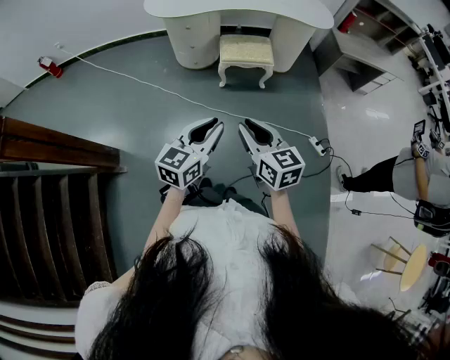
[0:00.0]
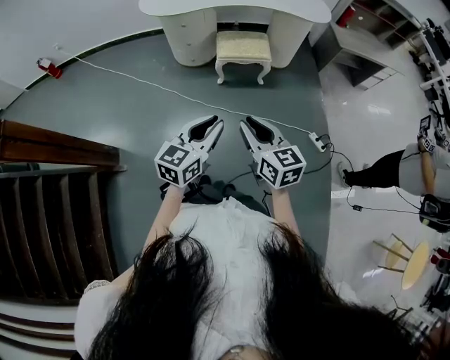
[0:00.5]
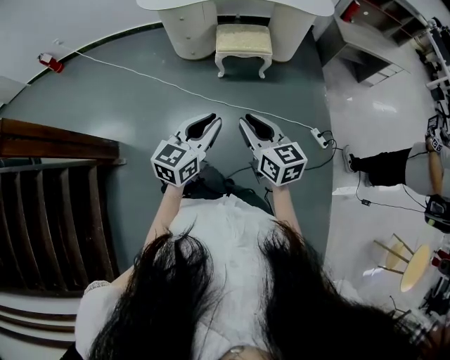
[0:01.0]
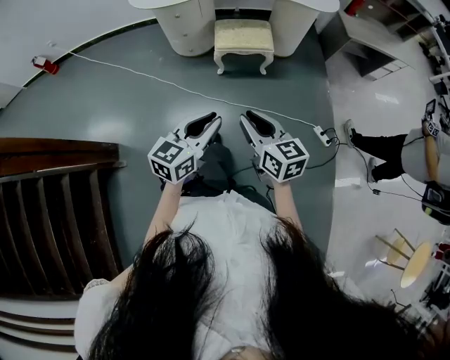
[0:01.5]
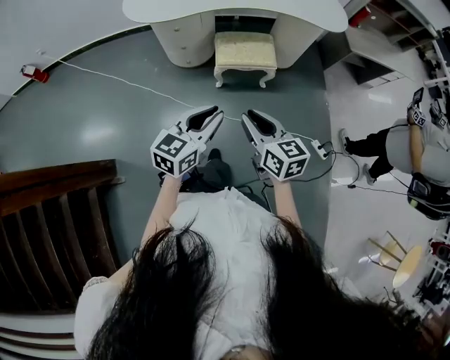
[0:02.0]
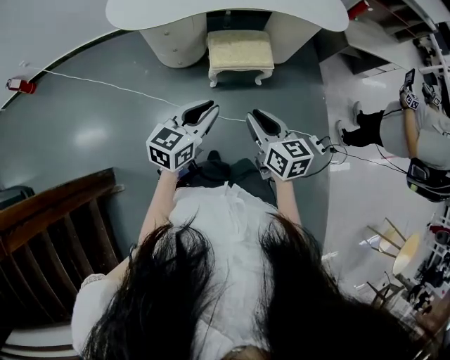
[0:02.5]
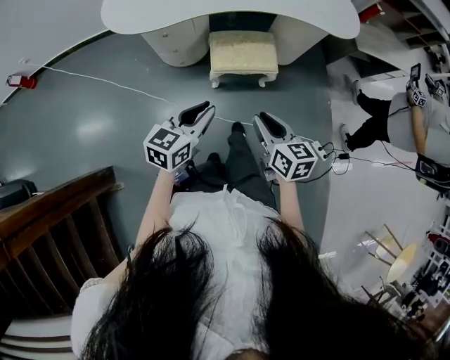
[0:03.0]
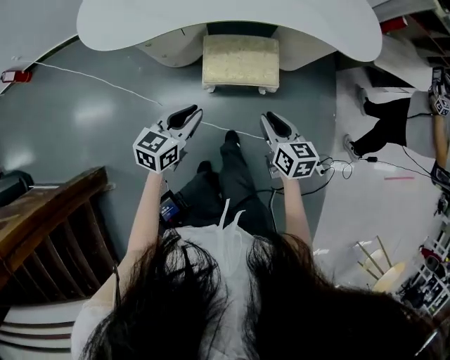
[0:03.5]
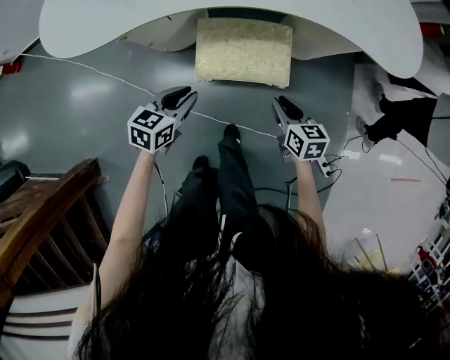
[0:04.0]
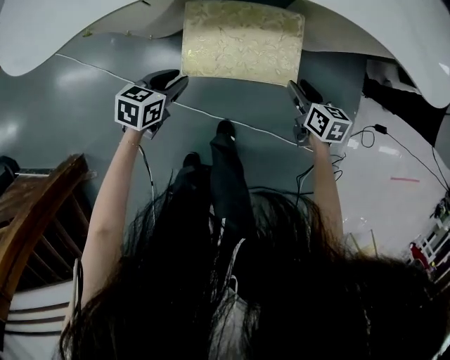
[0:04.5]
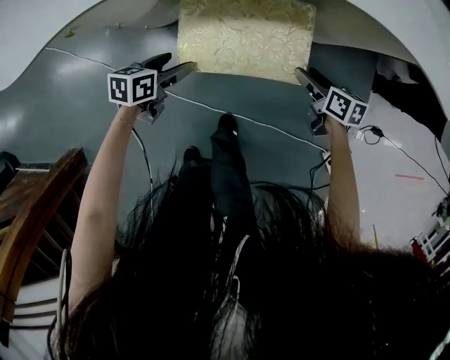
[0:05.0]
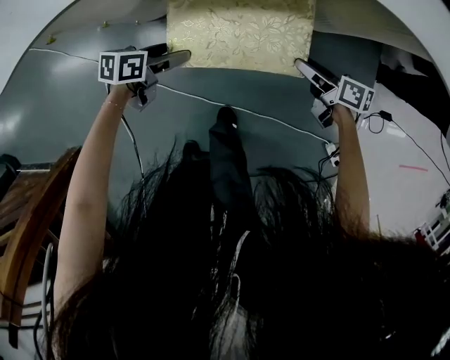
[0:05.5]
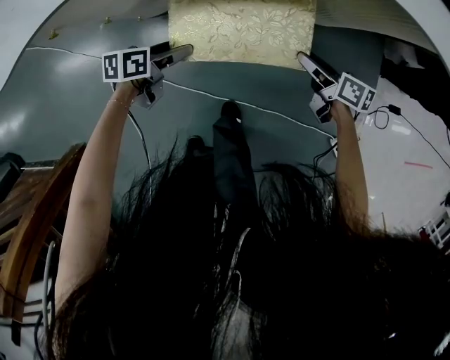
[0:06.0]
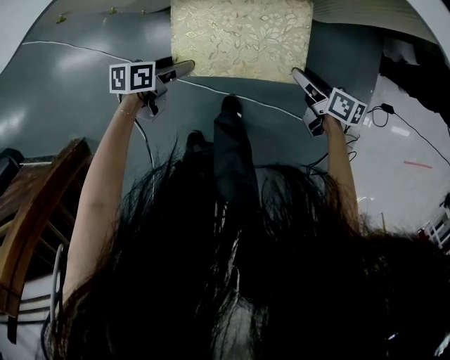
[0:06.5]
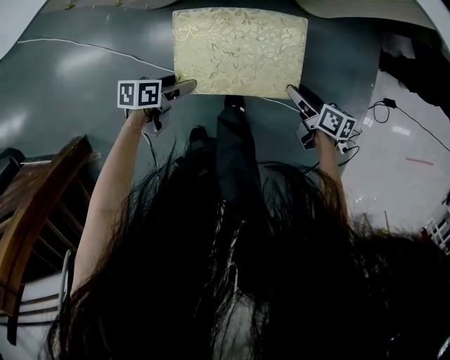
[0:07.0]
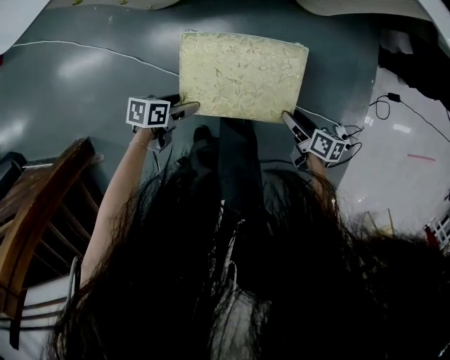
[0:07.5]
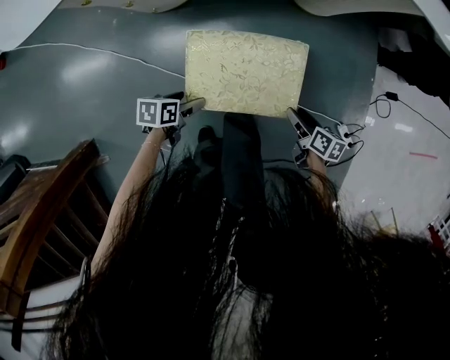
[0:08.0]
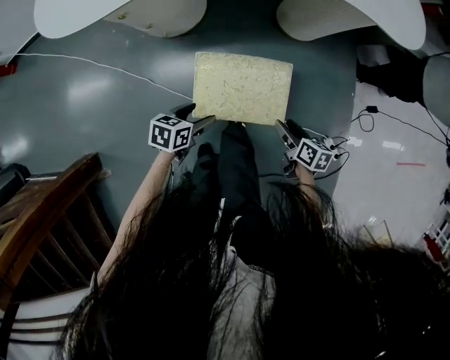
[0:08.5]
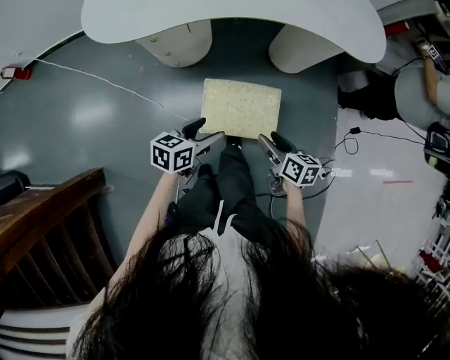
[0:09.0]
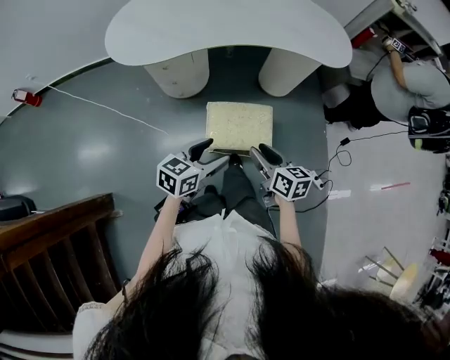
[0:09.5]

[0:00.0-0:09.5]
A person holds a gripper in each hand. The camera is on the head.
0:00.0 to 0:02.0: Both grippers travel together forward, roughly 20 cm.
0:02.0 to 0:04.0: The grippers both shift forward and downward by roughly 50 cm. The right gripper turns by some 20 degrees; the left gripper turns by some 30 degrees.
0:04.0 to 0:05.5: Both grippers move downward and forward, some 25 cm. The right gripper turns by some 40 degrees, and opens up. The left gripper swivels about 30 degrees, and opens its fingers.
0:05.5 to 0:07.5: The left gripper rotates approximately 20 degrees.
0:07.5 to 0:09.5: The two grippers go approximately 50 cm upward. The left gripper swivels some 50 degrees, while the right gripper changes its angle by about 30 degrees.

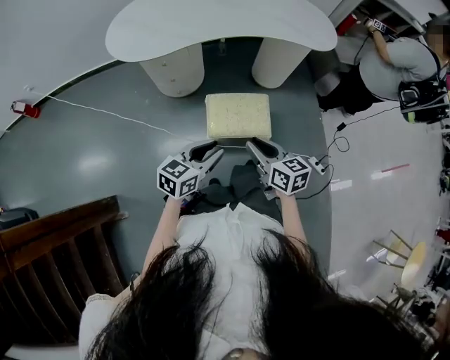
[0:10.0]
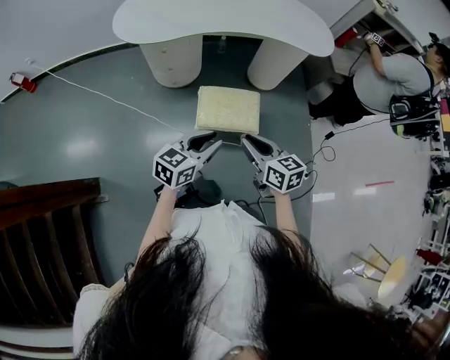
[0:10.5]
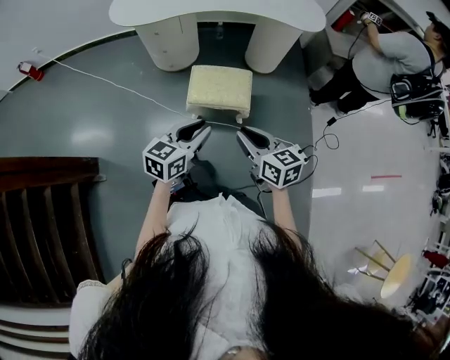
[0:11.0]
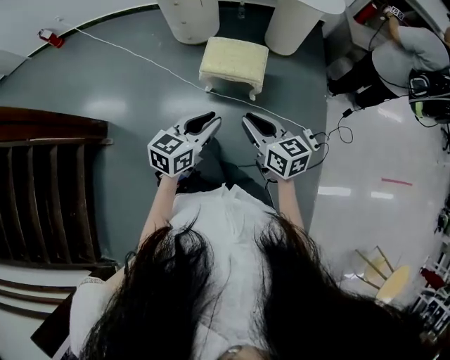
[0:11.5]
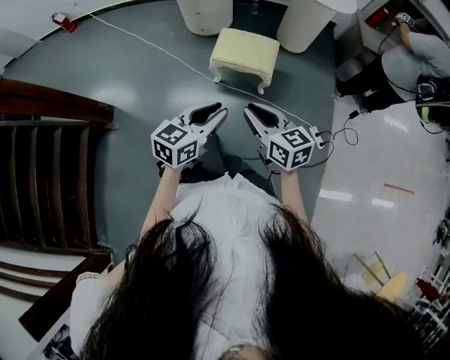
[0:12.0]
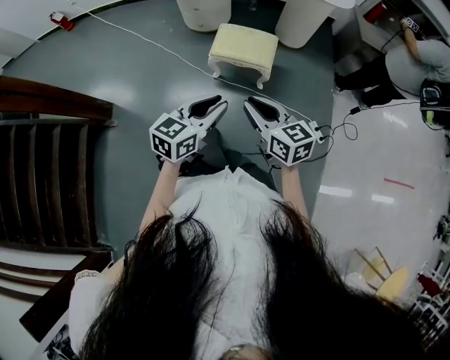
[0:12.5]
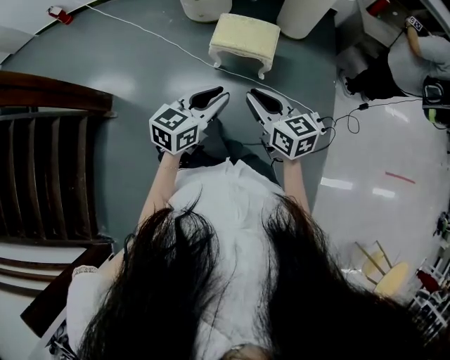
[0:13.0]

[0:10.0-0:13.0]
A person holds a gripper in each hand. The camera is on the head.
0:10.0 to 0:11.5: The grippers both shift backward and to the right by approximately 25 cm.
0:11.5 to 0:13.0: The grippers stay close to where they were, moving slightly.

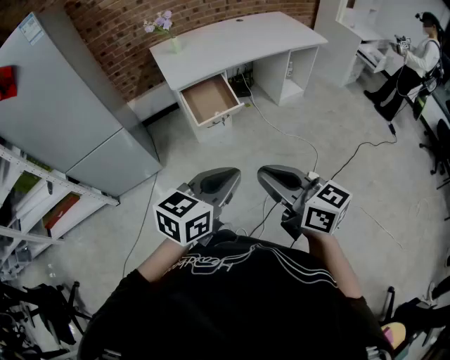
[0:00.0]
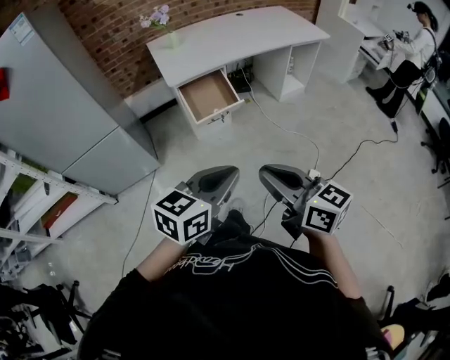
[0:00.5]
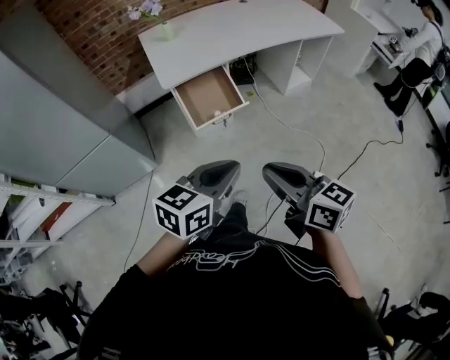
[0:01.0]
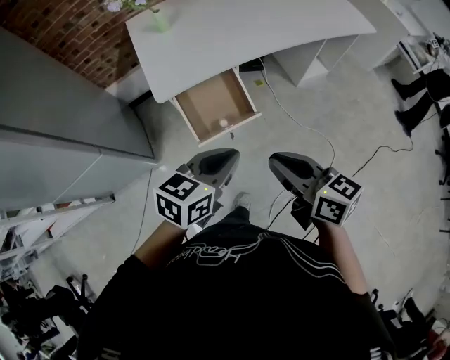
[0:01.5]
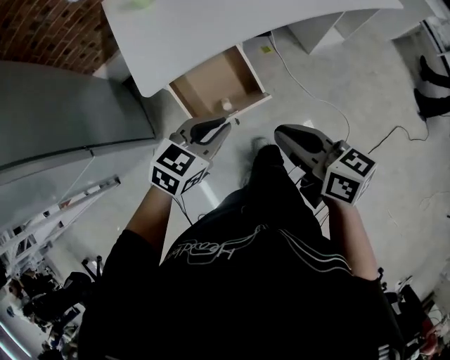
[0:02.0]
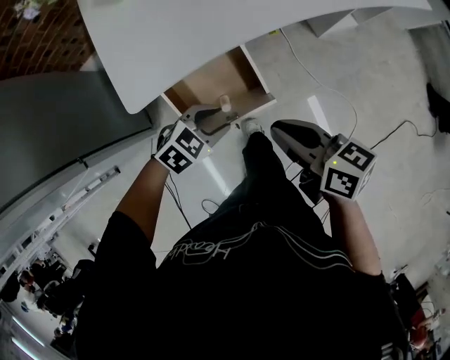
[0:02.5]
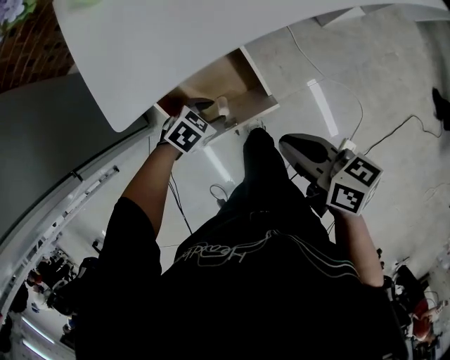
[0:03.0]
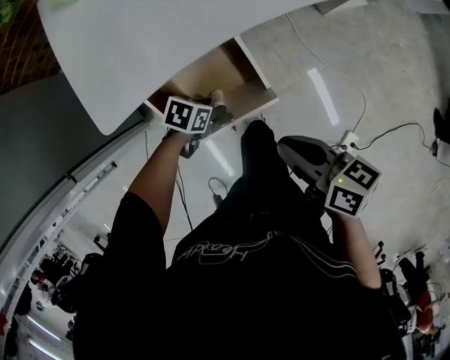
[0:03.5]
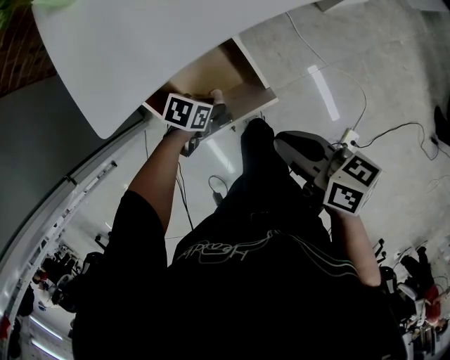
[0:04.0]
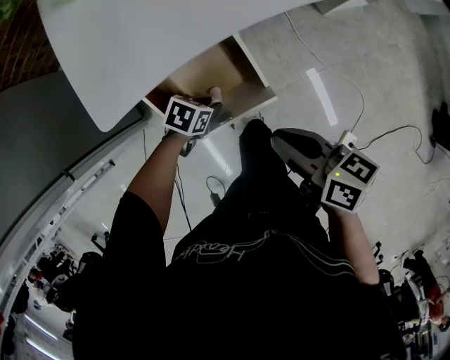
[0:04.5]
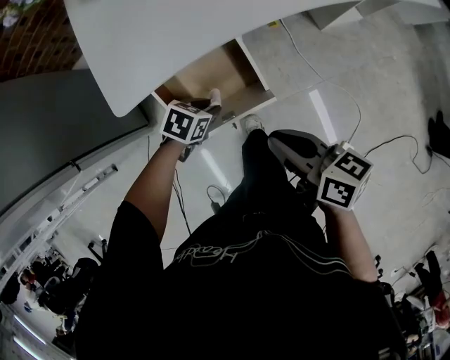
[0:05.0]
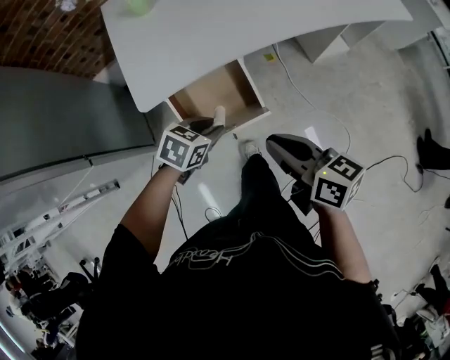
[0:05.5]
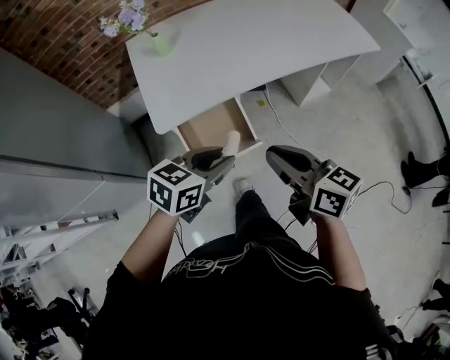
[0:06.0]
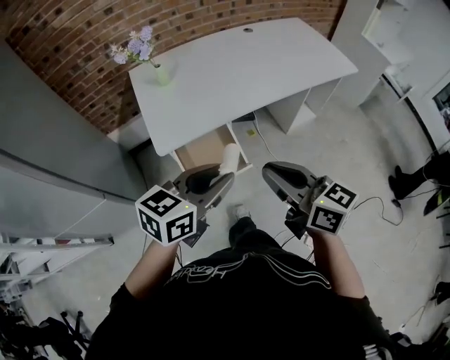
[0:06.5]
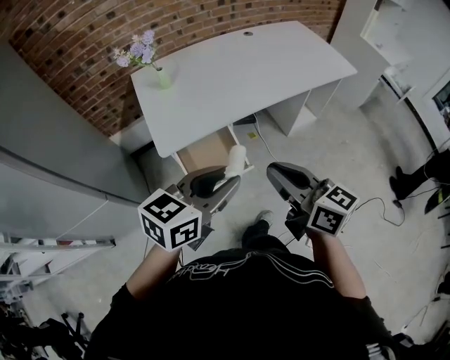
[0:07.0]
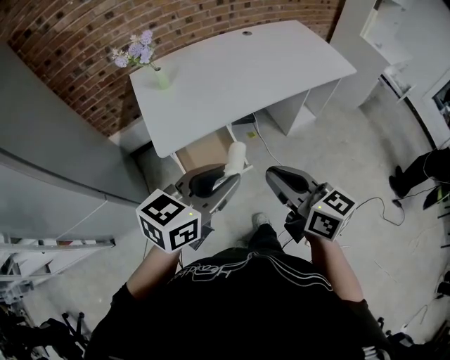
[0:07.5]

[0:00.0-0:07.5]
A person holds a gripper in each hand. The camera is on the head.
0:00.0 to 0:02.0: Both grippers travel together upward, approximately 60 cm. The right gripper turns by about 20 degrees; the left gripper swivels approximately 20 degrees.
0:02.0 to 0:04.0: The left gripper moves forward, roughly 35 cm, tilts its fingers roughly 30 degrees downward, and opens its fingers, while the right gripper heads forward and upward, covering roughly 20 cm, and changes its angle by about 20 degrees.
0:04.0 to 0:05.5: The right gripper goes approximately 15 cm backward and downward. The left gripper shifts roughly 20 cm backward, and rotates about 30 degrees.
0:05.5 to 0:07.5: The left gripper ends up roughly 40 cm from where it was, and changes its angle by roughly 40 degrees. Meanwhile the right gripper shifts by some 25 cm, and turns by some 20 degrees.

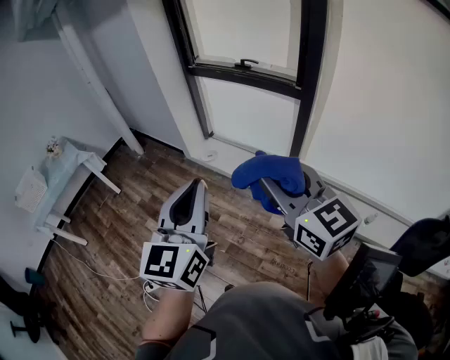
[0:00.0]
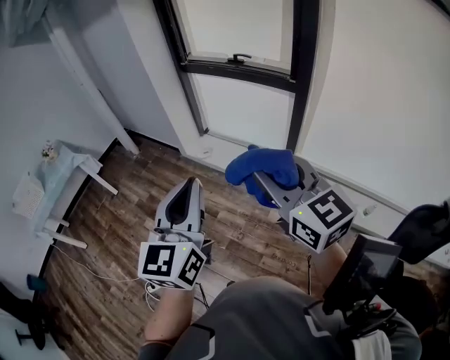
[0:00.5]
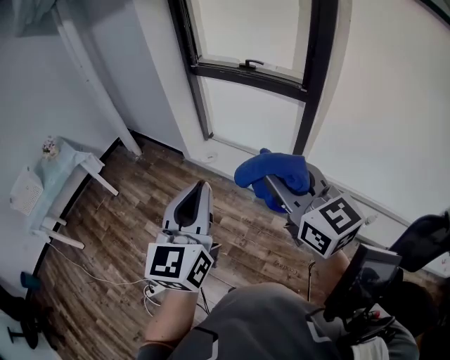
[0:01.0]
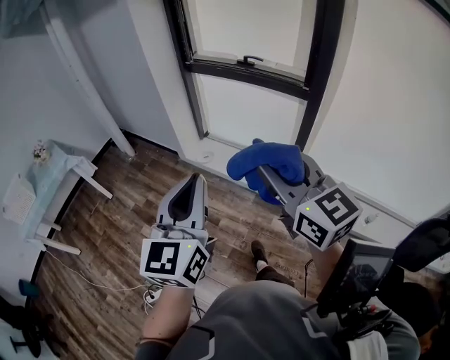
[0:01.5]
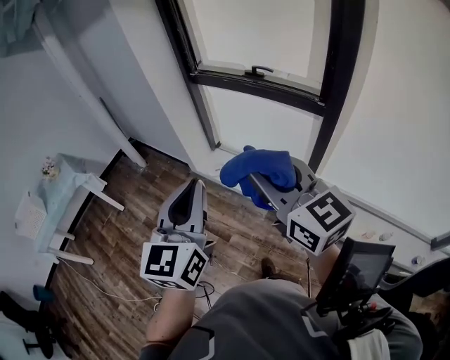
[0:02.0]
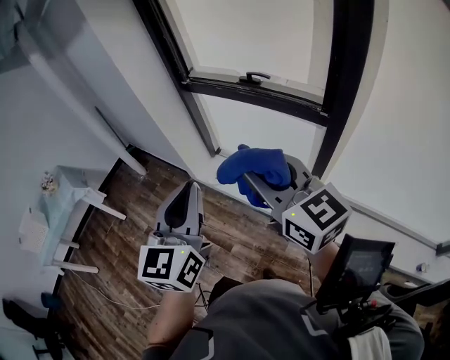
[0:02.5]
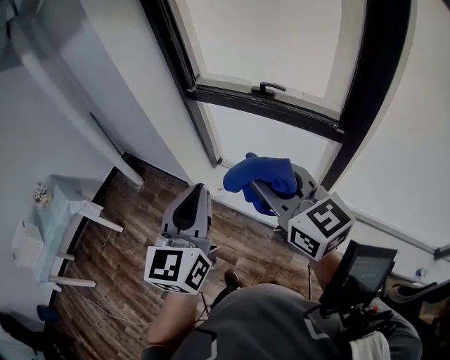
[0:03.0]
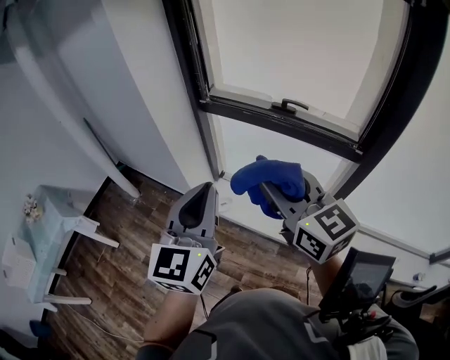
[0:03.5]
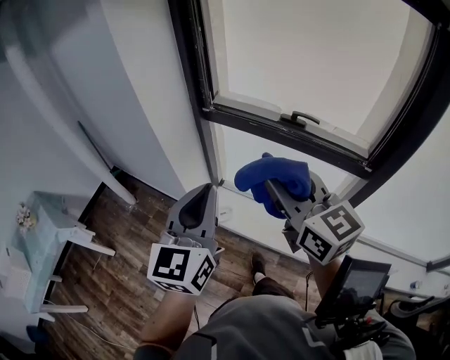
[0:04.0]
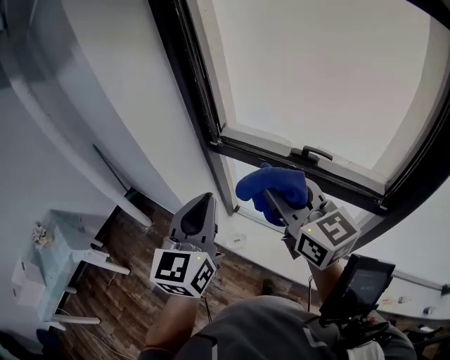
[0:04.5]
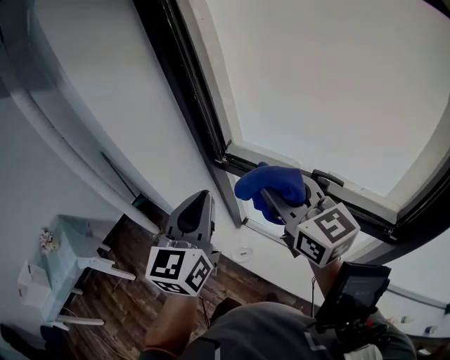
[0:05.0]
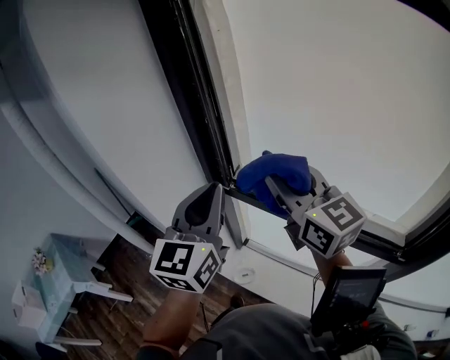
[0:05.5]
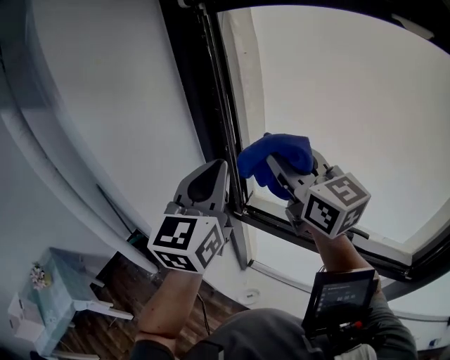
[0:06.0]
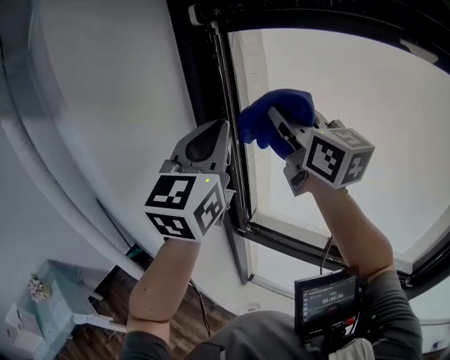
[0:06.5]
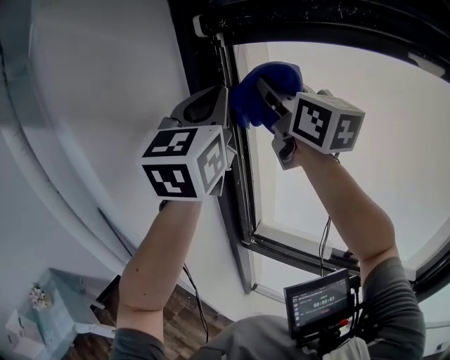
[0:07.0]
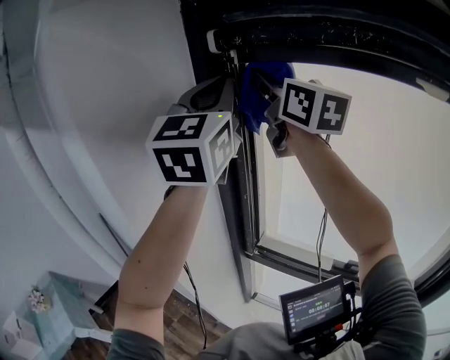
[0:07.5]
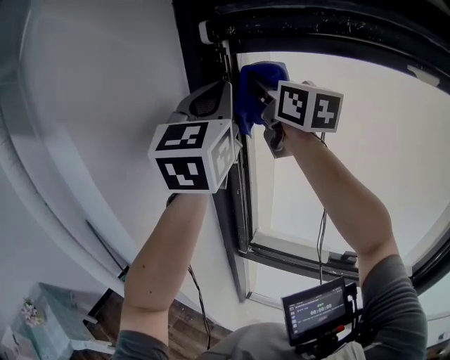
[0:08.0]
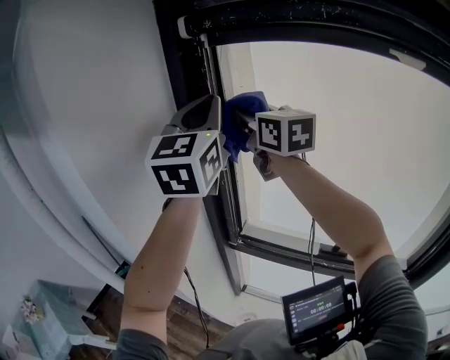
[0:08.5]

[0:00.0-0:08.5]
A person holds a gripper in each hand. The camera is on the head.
0:00.0 to 0:02.0: Both grippers move forward, approximately 25 cm.
0:02.0 to 0:04.0: The two grippers travel together, forward, about 40 cm.
0:04.0 to 0:06.5: The pair of grippers is taken forward, approximately 40 cm. Both grippers travel together upward, about 25 cm. The left gripper rotates some 20 degrees.
0:06.5 to 0:08.5: Both grippers travel together forward, approximately 10 cm. The right gripper goes upward and returns, about 10 cm each way.
